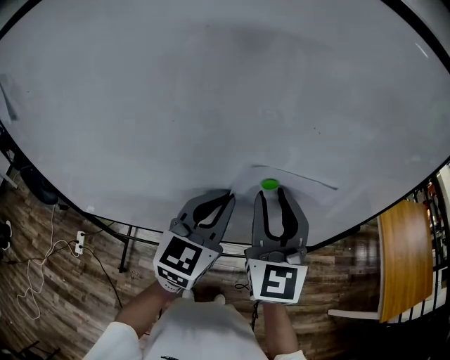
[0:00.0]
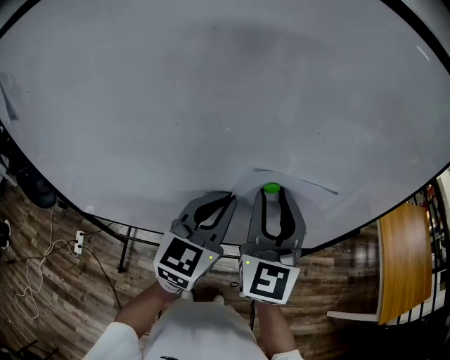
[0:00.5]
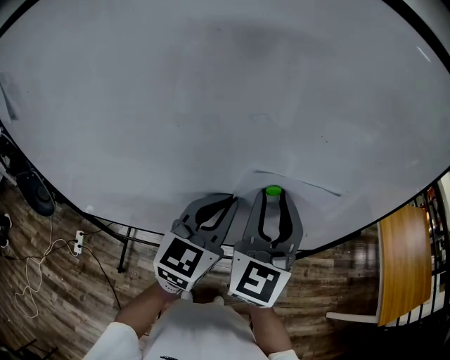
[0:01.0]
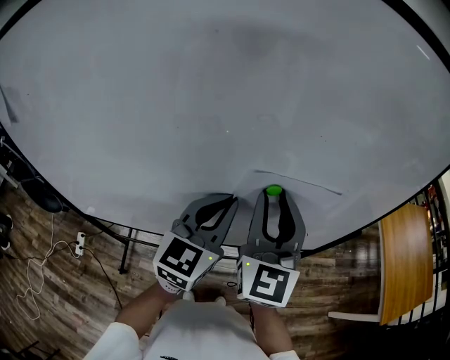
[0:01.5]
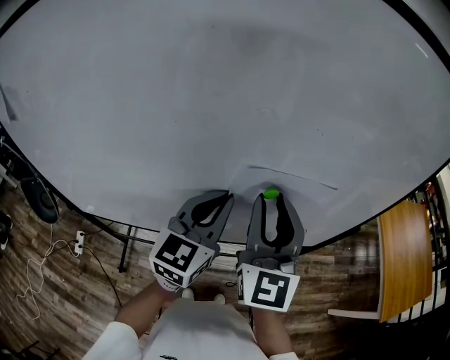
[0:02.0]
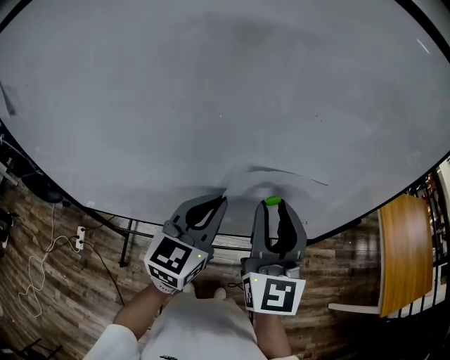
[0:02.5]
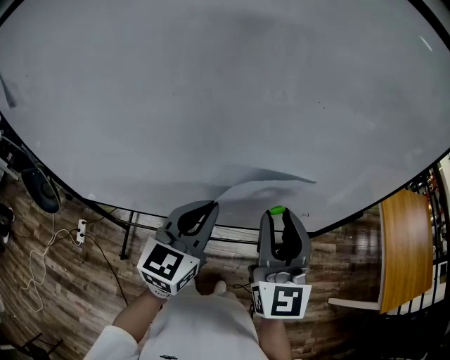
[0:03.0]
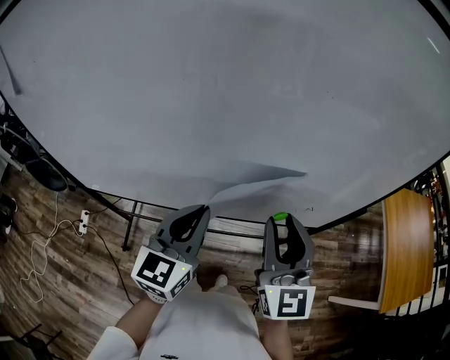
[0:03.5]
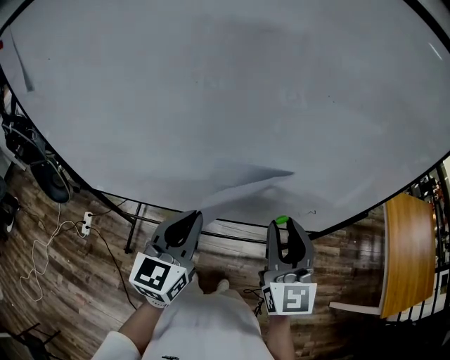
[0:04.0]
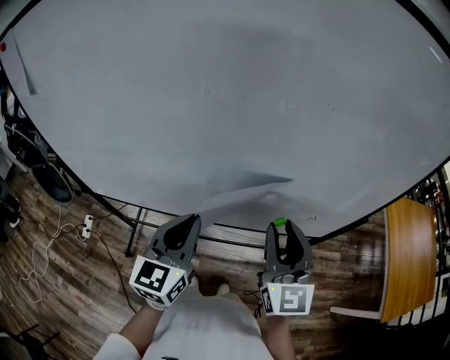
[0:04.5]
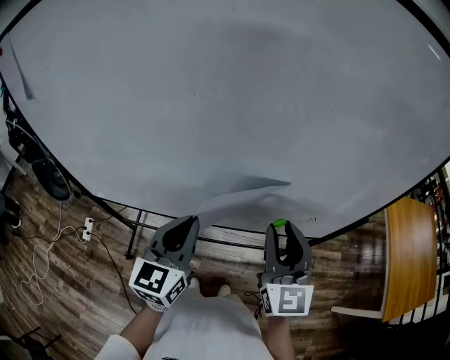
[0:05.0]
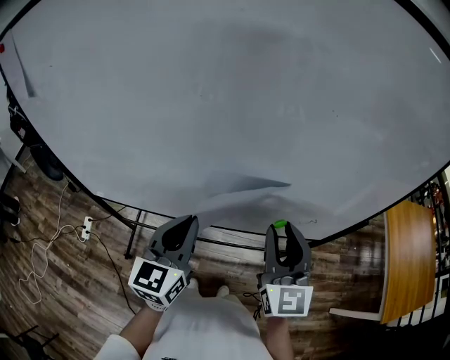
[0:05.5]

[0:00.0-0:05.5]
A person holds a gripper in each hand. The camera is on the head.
0:00.0 to 0:02.0: The grippers make only small movements.
0:02.0 to 0:03.5: The two grippers go some 10 cm backward and downward.
0:03.5 to 0:05.5: The grippers move only a little.

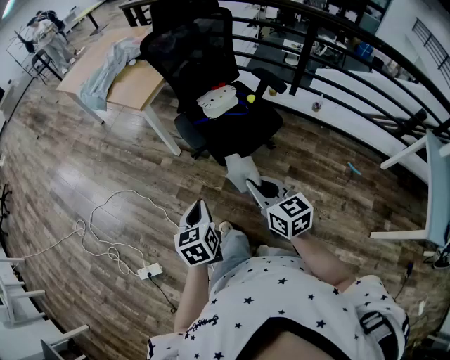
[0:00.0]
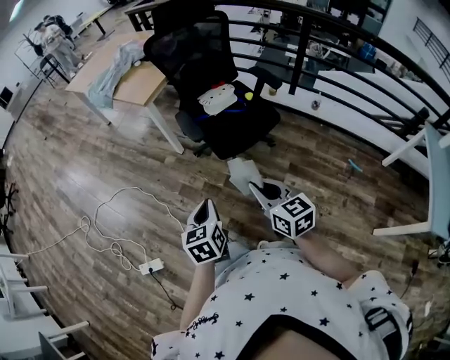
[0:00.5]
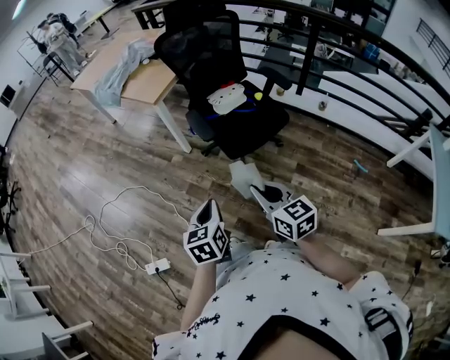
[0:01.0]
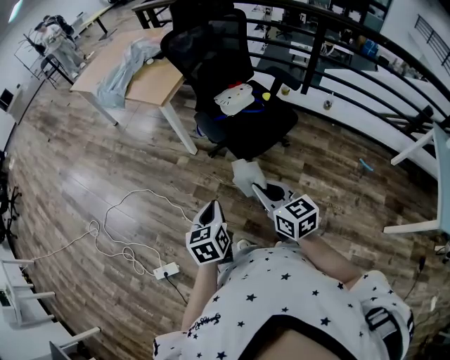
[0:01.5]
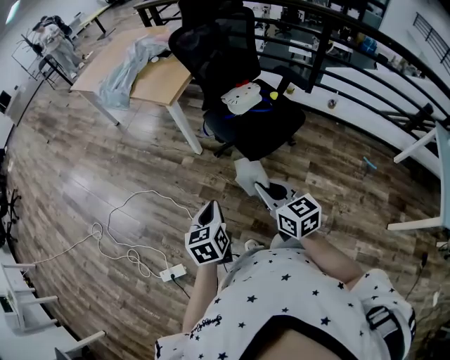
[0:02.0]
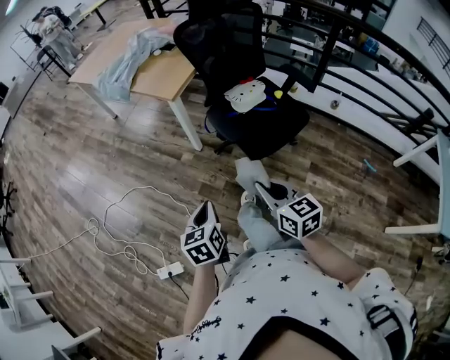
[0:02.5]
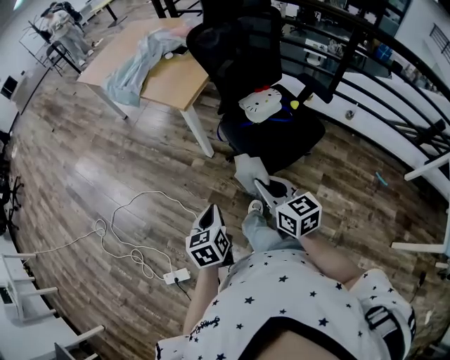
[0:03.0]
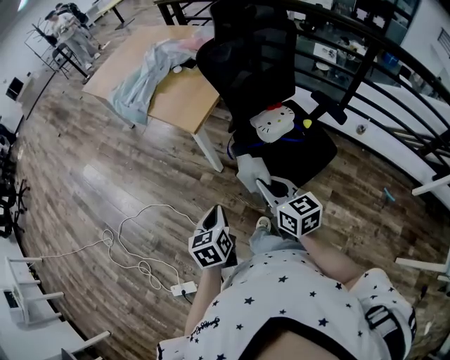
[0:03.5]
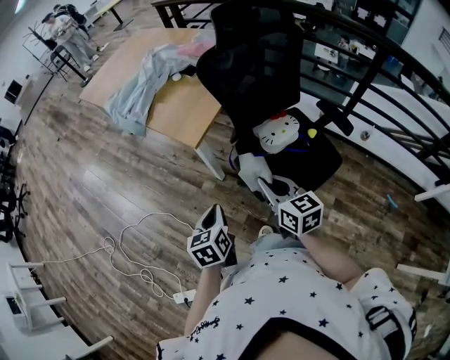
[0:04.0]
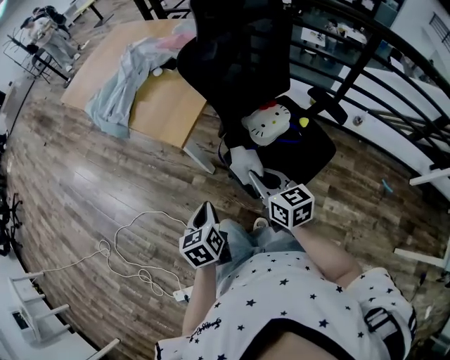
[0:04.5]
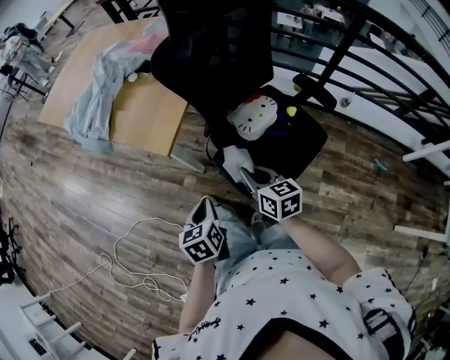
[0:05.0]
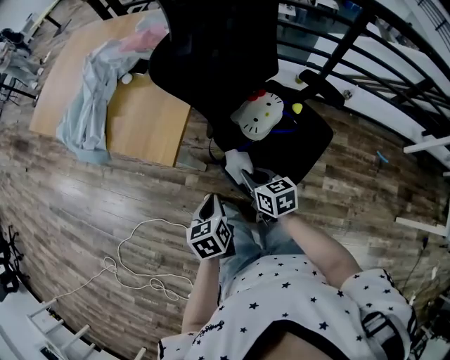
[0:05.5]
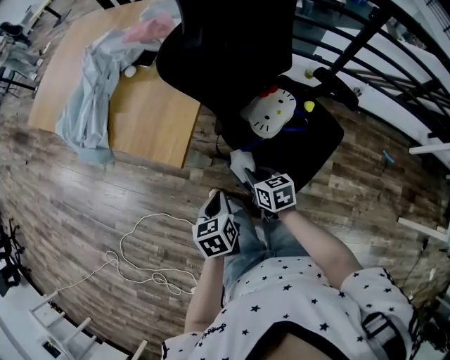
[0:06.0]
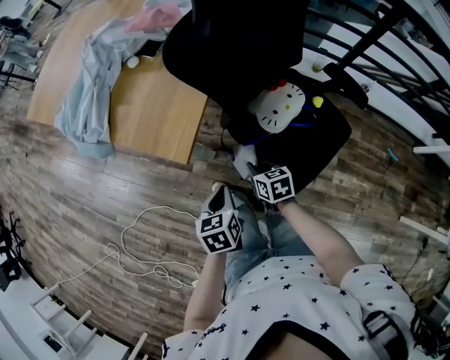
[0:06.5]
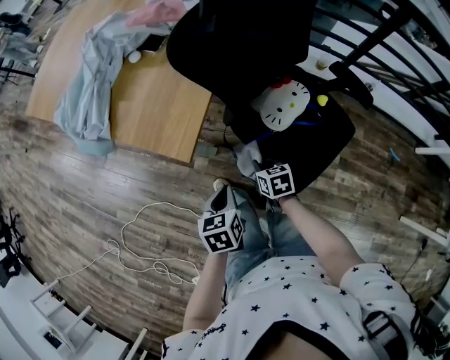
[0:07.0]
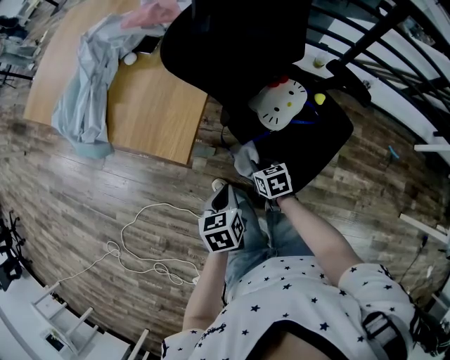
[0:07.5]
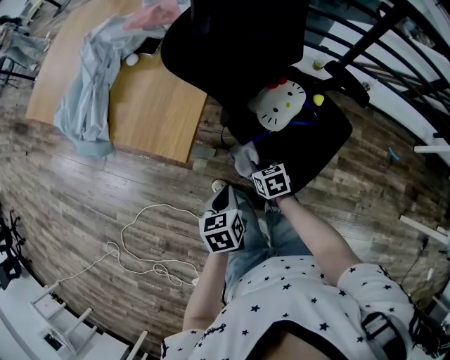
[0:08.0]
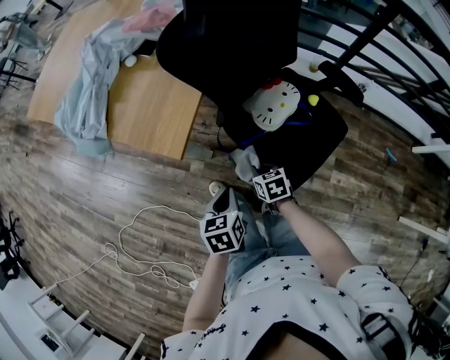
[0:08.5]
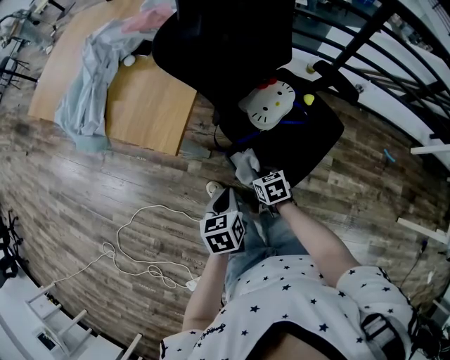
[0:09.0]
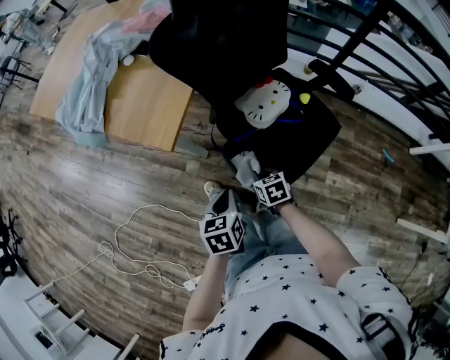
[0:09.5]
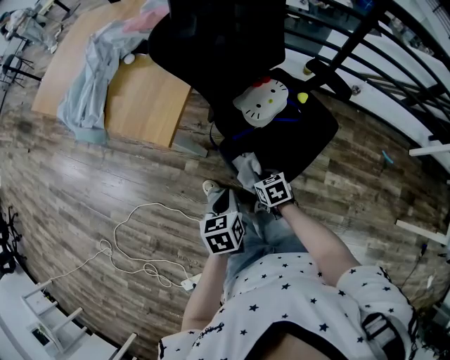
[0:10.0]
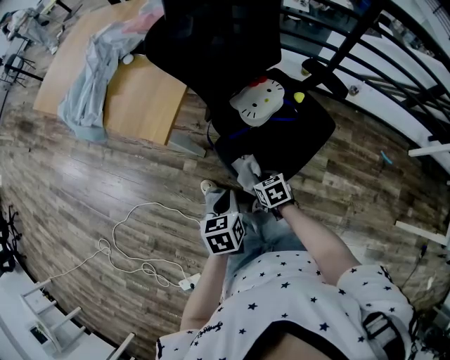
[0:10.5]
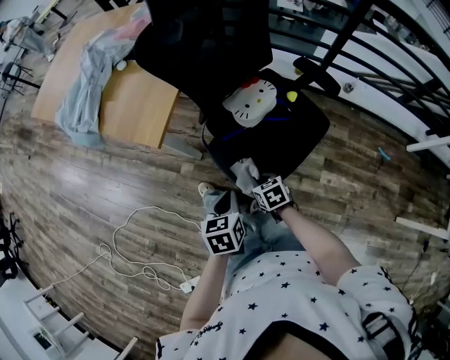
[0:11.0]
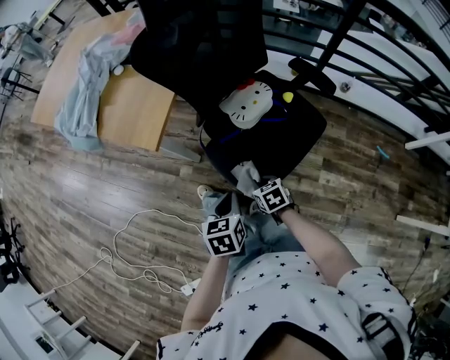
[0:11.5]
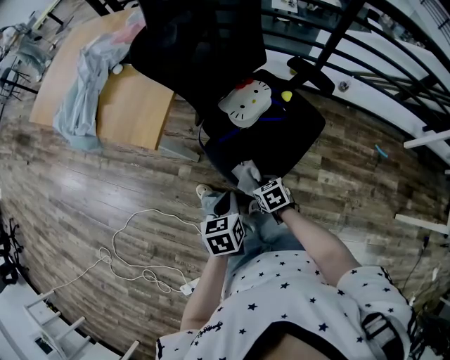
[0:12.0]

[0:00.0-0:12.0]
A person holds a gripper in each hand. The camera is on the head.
0:00.0 to 0:02.0: The grippers both shift to the left by roughly 10 cm.
0:02.0 to 0:04.0: The two grippers go roughly 30 cm forward.
0:04.0 to 0:06.0: The right gripper shifts some 25 cm downward and forward, and rotates approximately 30 degrees, while the left gripper heads forward and downward, covering approximately 15 cm.
0:06.0 to 0:08.0: The right gripper shifts some 10 cm downward.
0:08.0 to 0:10.0: The two grippers go approximately 10 cm backward.
0:10.0 to 0:12.0: The left gripper shifts by some 5 cm. The right gripper shifts approximately 5 cm backward.

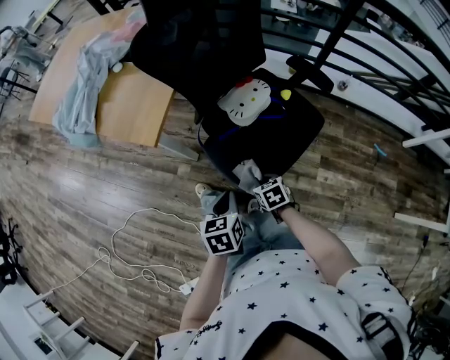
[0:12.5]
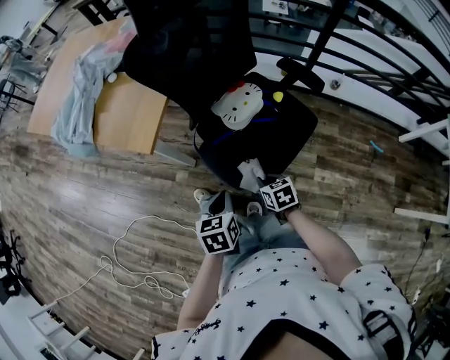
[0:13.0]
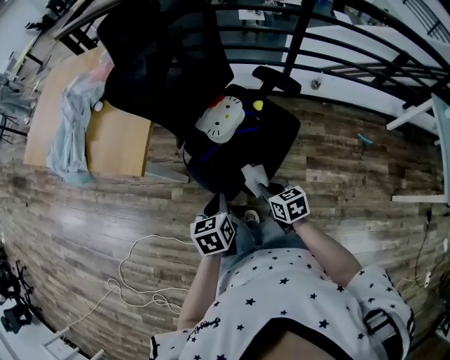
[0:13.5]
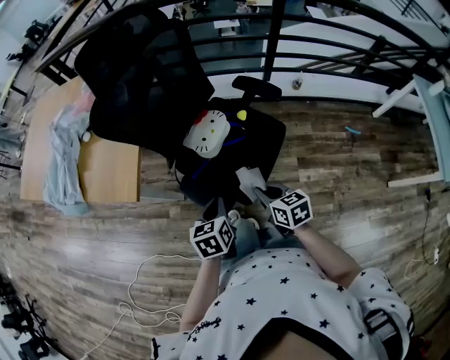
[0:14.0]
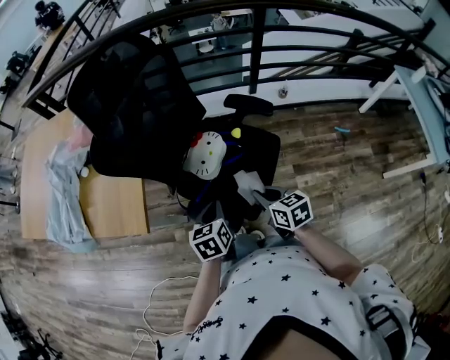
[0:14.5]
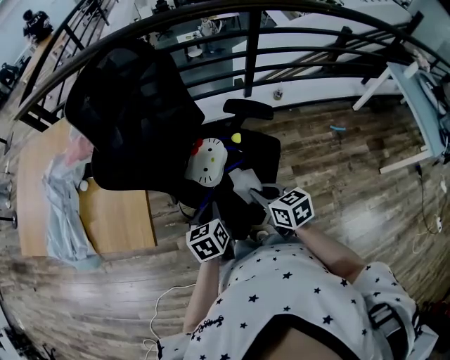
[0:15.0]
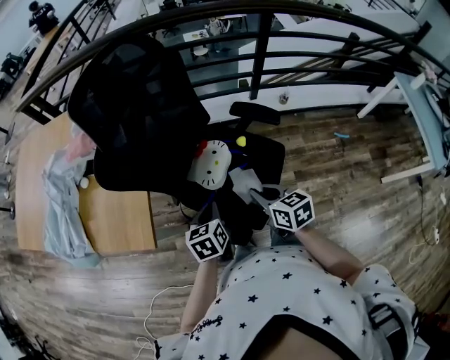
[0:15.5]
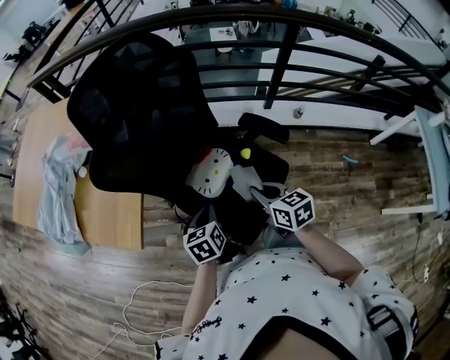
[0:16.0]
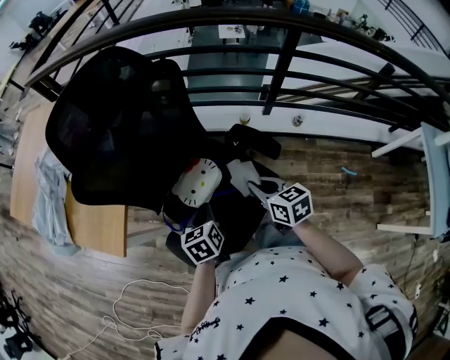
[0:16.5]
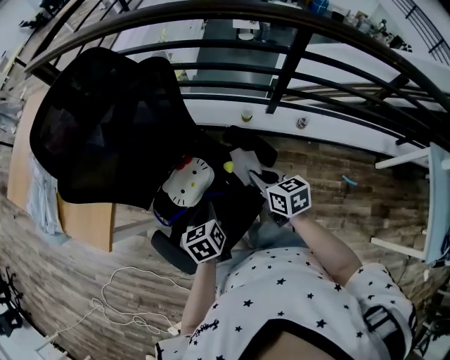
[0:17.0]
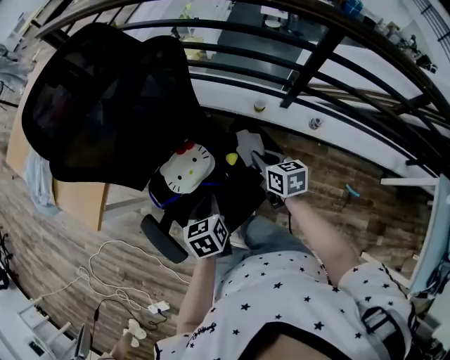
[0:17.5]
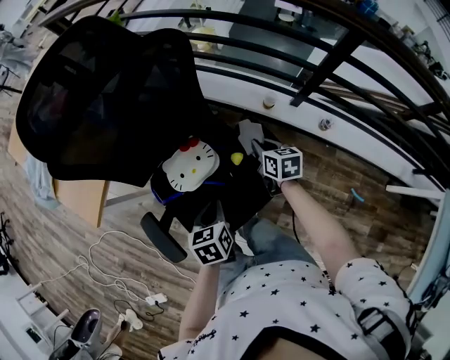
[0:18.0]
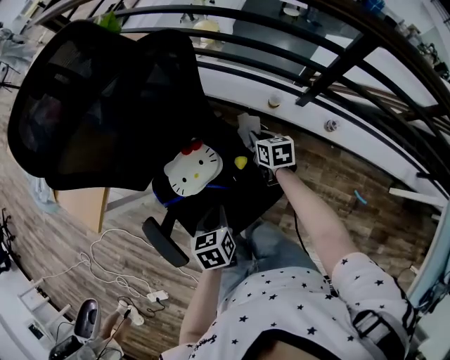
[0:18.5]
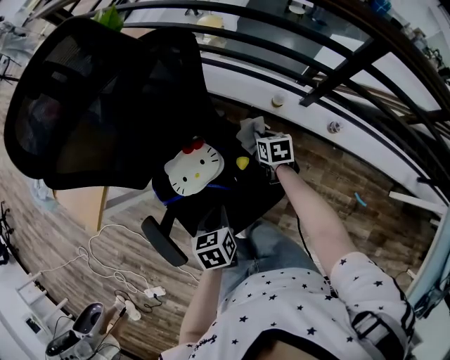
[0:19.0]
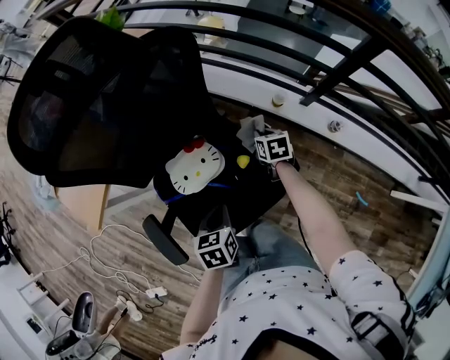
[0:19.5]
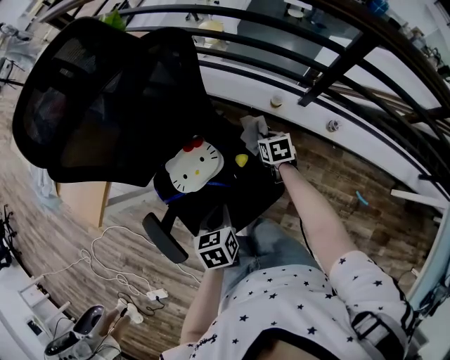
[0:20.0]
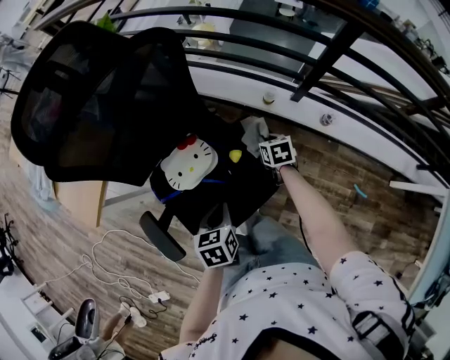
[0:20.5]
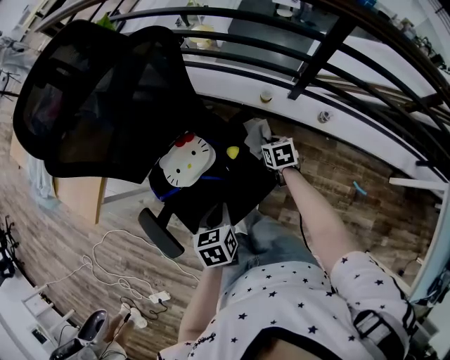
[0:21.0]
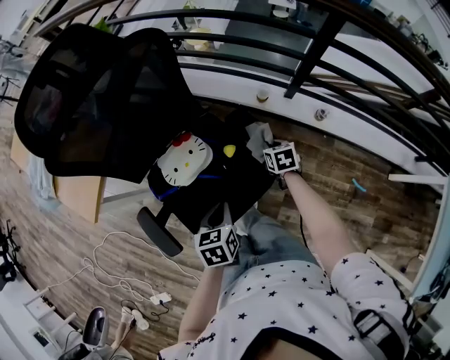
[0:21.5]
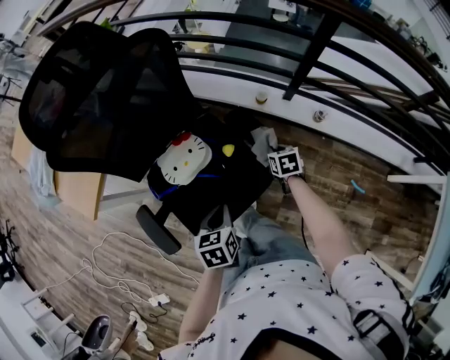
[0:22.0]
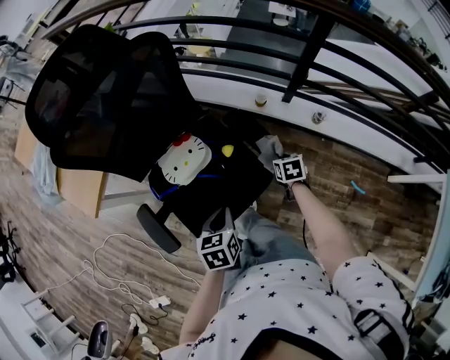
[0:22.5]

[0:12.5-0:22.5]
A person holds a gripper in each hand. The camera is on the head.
0:12.5 to 0:14.5: The right gripper travels upward and to the right by approximately 20 cm, and changes its angle by approximately 30 degrees. The left gripper shifts about 15 cm forward, to the right and upward.
0:14.5 to 0:16.5: The grippers both shift forward and to the right by roughly 20 cm.
0:16.5 to 0:18.5: The right gripper goes roughly 30 cm forward, downward and to the right; the left gripper goes some 10 cm to the right and downward.
0:18.5 to 0:20.5: The right gripper moves backward and to the right, approximately 5 cm.
0:20.5 to 0:22.5: The right gripper travels backward and to the right by some 15 cm. The left gripper heads backward, covering about 5 cm.
